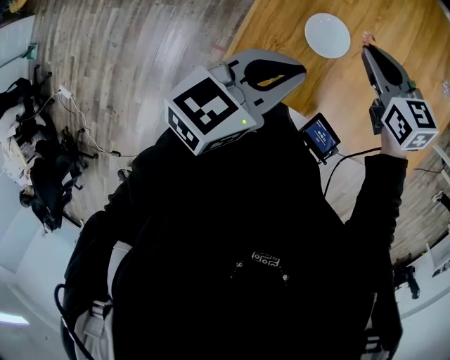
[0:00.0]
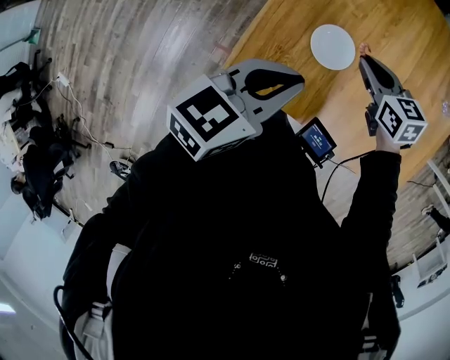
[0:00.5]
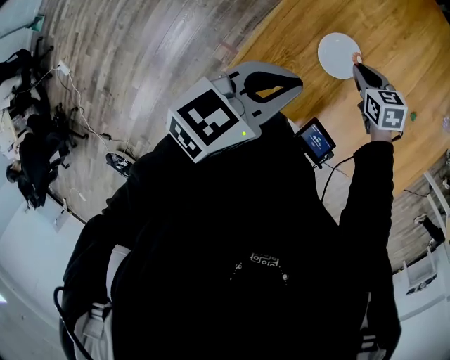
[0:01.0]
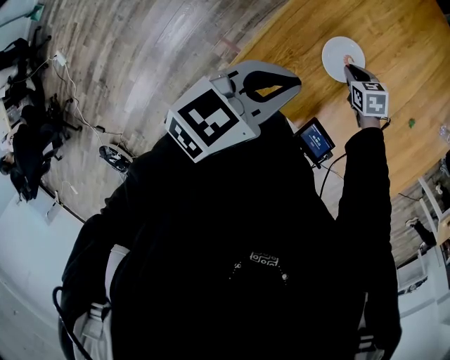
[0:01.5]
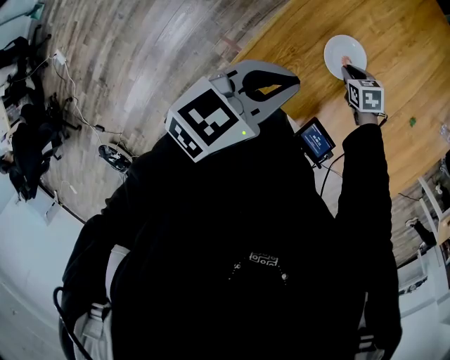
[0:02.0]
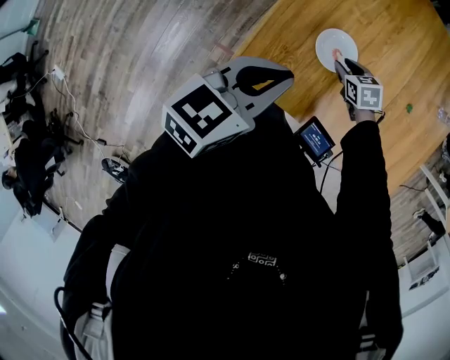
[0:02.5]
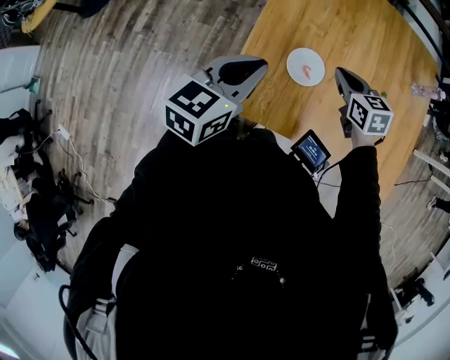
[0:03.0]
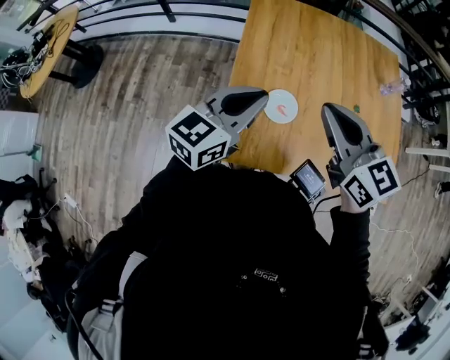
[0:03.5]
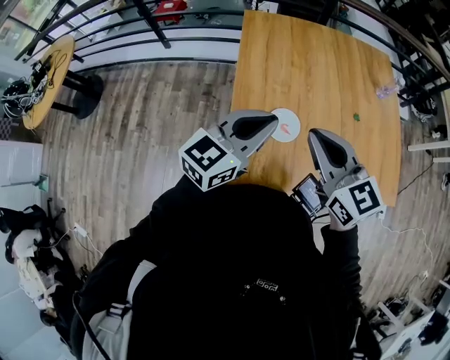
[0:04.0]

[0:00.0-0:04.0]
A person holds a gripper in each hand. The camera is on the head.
0:00.0 to 0:02.0: The right gripper goes roughly 25 cm downward, and tilts its fingers about 30 degrees downward.
0:02.0 to 0:04.0: The right gripper moves upward, about 40 cm, and points its fingers roughly 60 degrees further upward; the left gripper moves upward, about 10 cm, and rotates roughly 30 degrees.

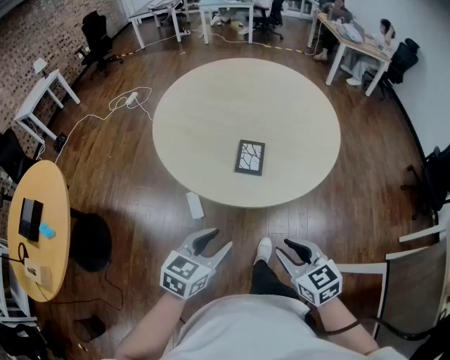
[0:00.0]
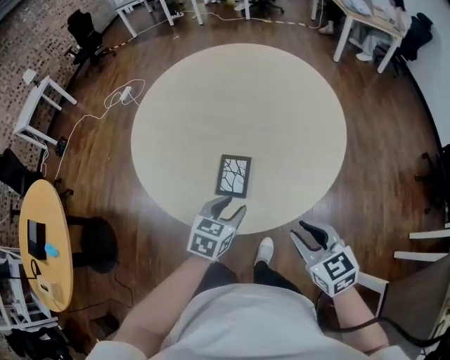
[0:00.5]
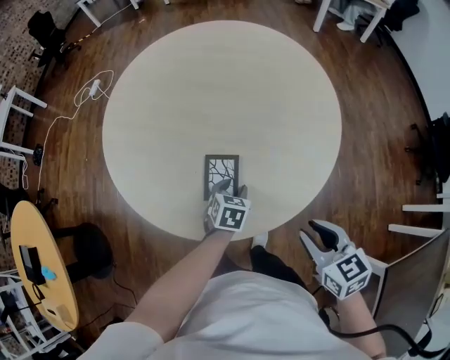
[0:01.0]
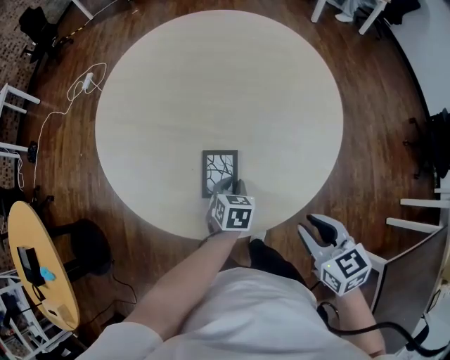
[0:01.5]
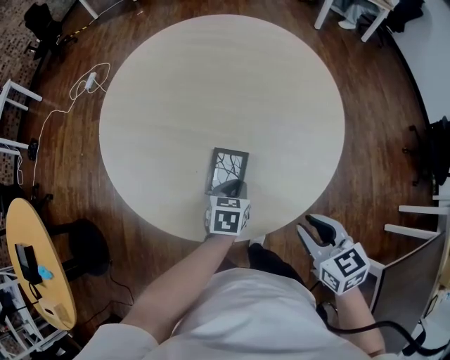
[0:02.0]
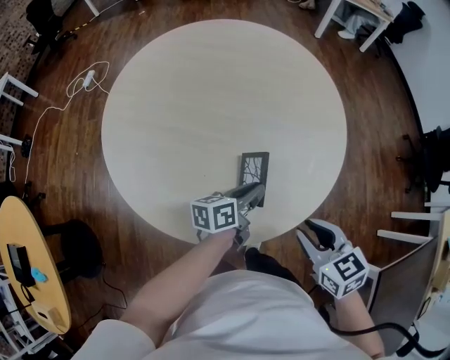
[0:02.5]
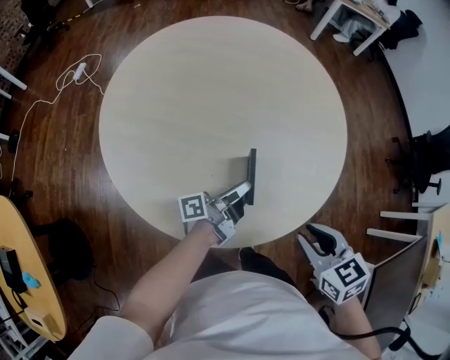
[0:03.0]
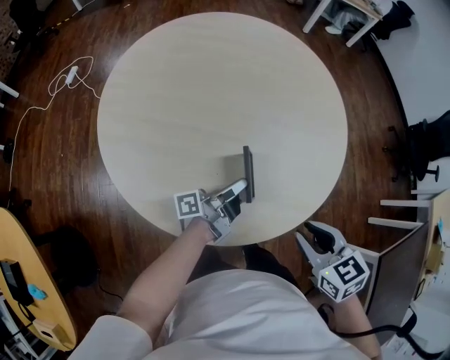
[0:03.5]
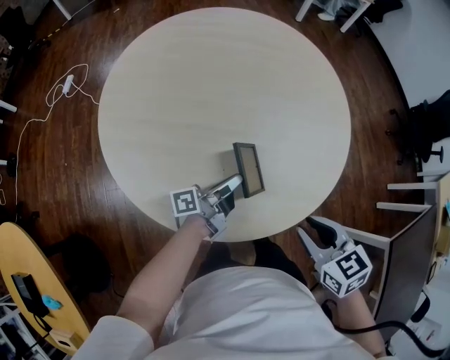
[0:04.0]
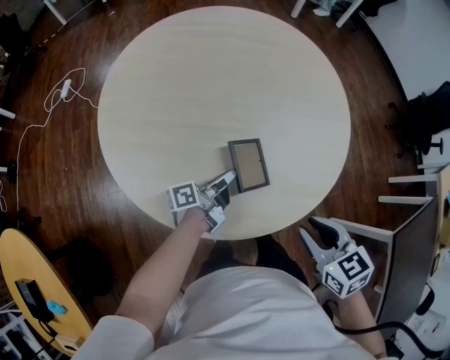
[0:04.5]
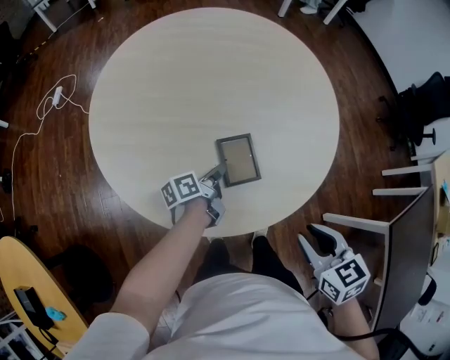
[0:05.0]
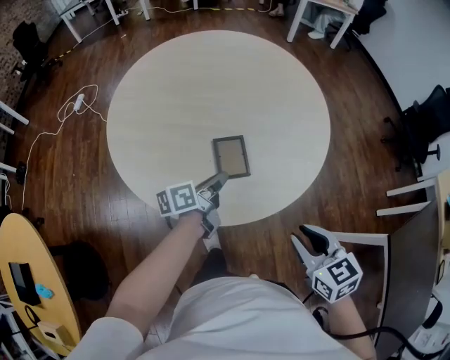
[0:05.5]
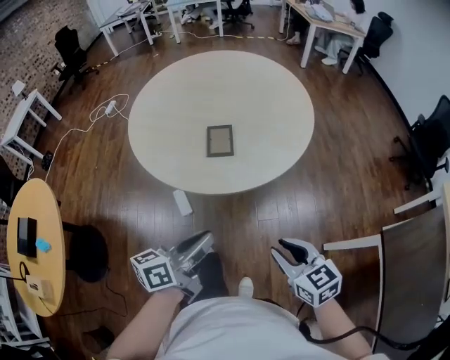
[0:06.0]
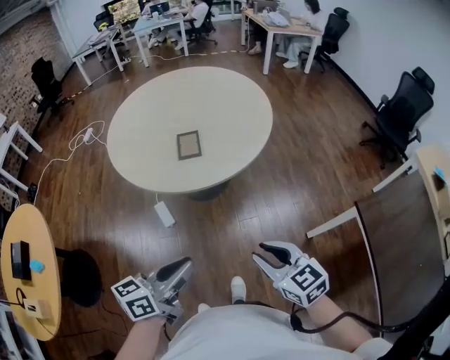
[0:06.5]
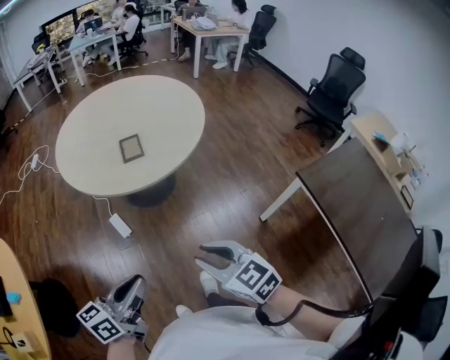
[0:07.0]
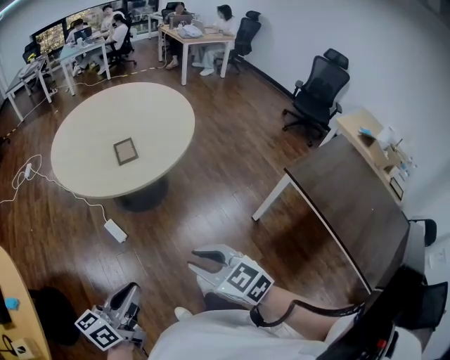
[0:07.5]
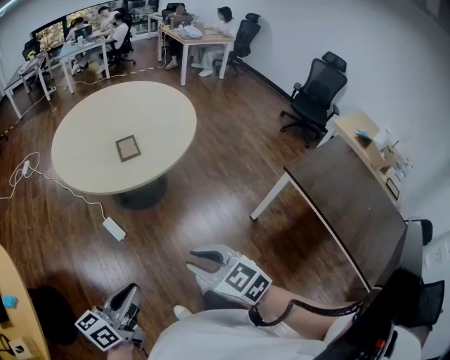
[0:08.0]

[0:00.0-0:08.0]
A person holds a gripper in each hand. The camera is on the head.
0:00.0 to 0:02.0: The right gripper travels forward and to the right by roughly 20 cm; the left gripper moves forward, downward and to the right, approximately 30 cm, rotates about 20 degrees, and closes up.
0:02.0 to 0:04.0: The left gripper heads to the left and upward, covering roughly 10 cm, and points its fingers approximately 60 degrees further upward, while the right gripper is displaced to the left by some 10 cm.
0:04.0 to 0:06.0: The right gripper moves backward and to the right, roughly 20 cm. The left gripper shifts approximately 30 cm backward and upward, and rotates approximately 40 degrees.
0:06.0 to 0:08.0: The left gripper heads backward, covering about 20 cm. Meanwhile the right gripper travels backward and to the left by some 20 cm.

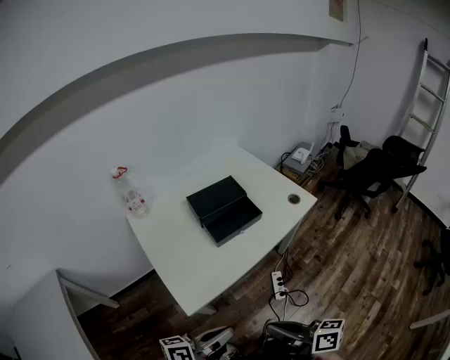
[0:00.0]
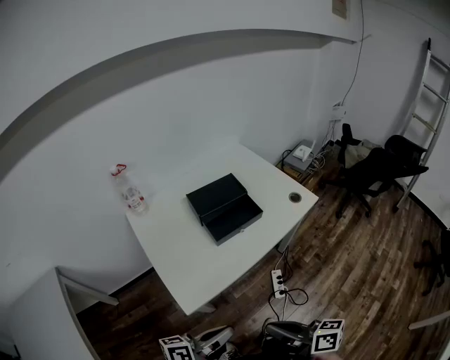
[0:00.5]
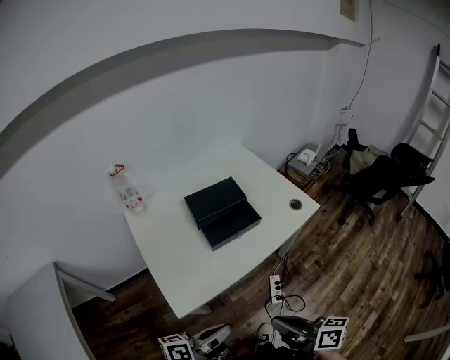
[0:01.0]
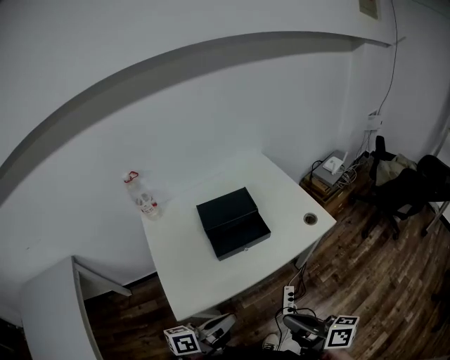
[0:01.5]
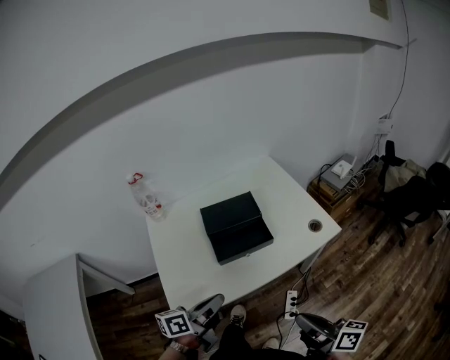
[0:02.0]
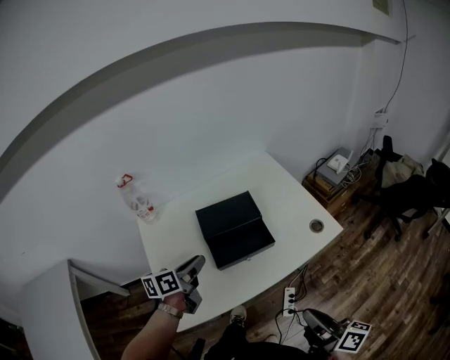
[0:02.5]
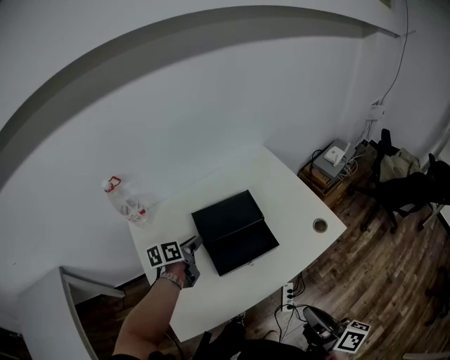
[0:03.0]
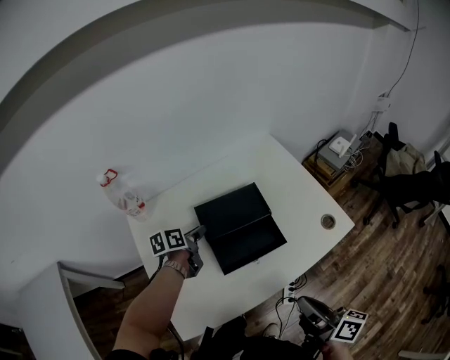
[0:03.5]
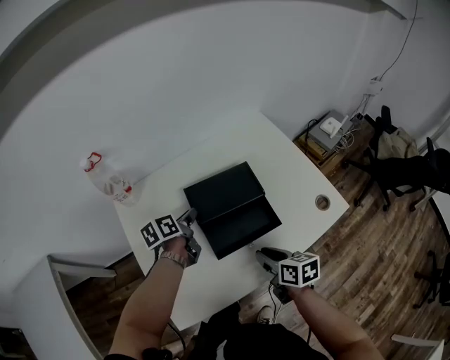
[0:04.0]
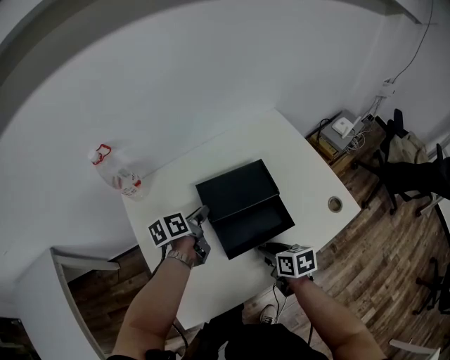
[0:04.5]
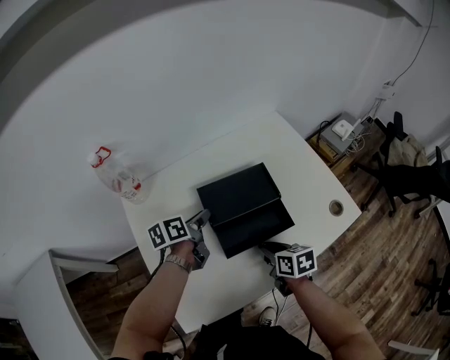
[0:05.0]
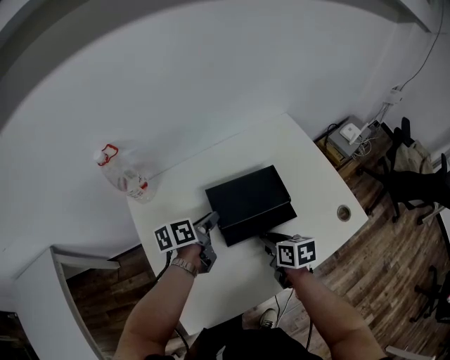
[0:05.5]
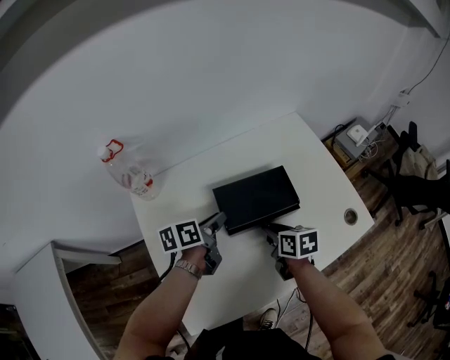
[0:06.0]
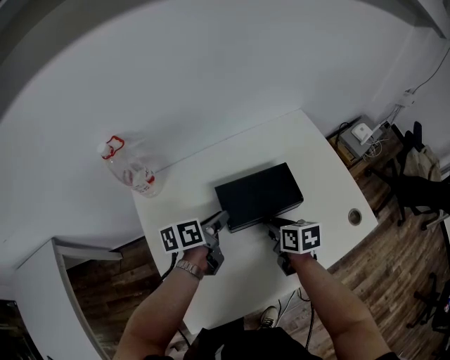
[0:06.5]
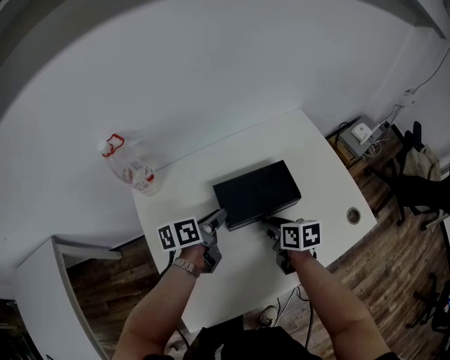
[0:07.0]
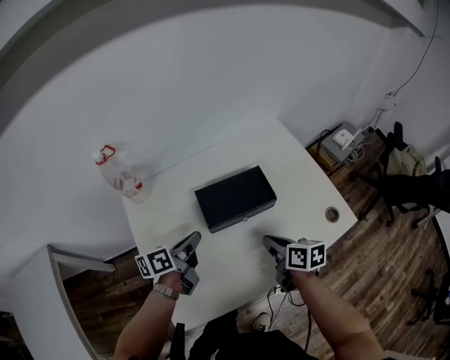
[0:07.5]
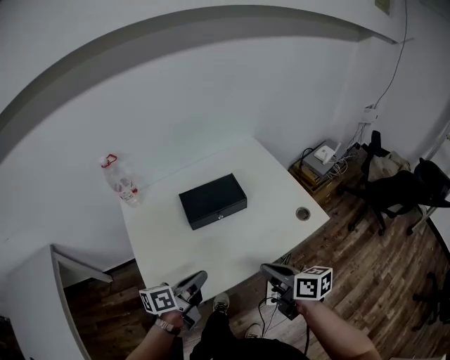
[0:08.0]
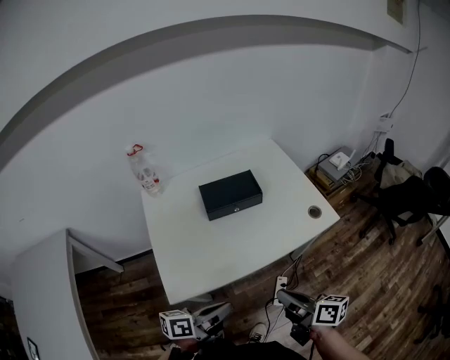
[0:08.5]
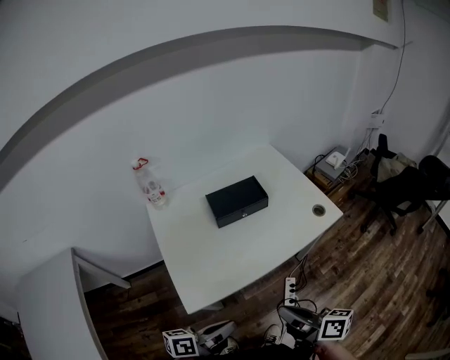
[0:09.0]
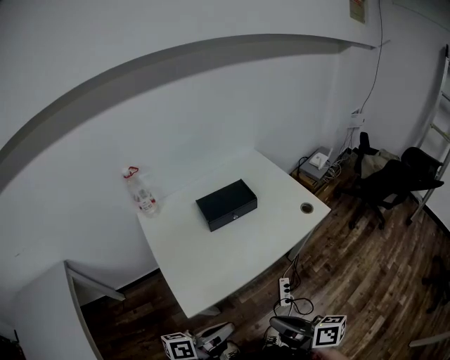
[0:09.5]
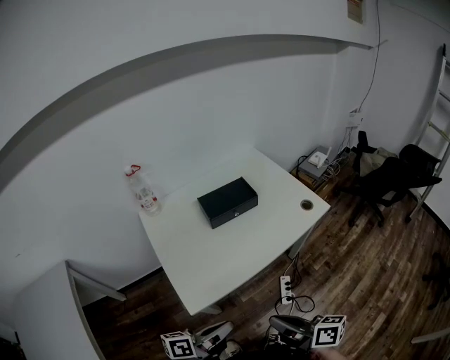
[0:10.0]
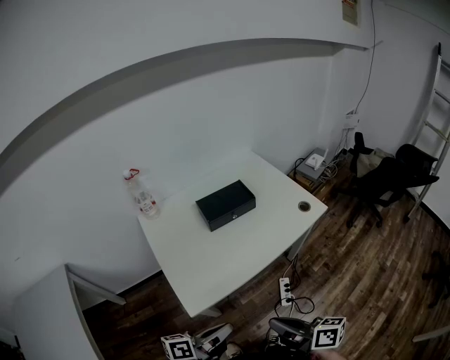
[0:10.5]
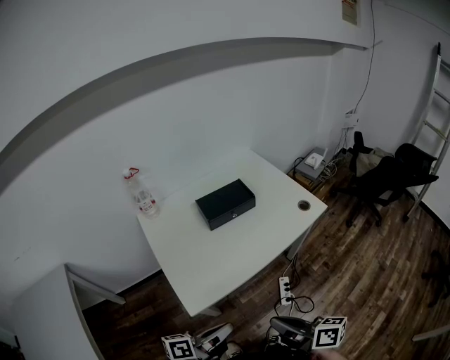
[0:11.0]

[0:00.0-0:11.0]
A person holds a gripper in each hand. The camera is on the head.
0:00.0 to 0:02.0: The right gripper shifts approximately 20 cm to the right and forward, while the left gripper shifts some 20 cm forward, and turns by about 20 degrees.
0:02.0 to 0:03.5: The right gripper heads forward, covering some 10 cm; the left gripper shifts approximately 30 cm forward, and swivels roughly 20 degrees.
0:03.5 to 0:05.5: The right gripper shifts about 30 cm forward, downward and to the left, and angles its fingers downward, by about 30 degrees.
0:05.5 to 0:07.5: The right gripper shifts by some 5 cm. The left gripper shifts some 5 cm backward, and closes.
0:07.5 to 0:09.0: The right gripper goes approximately 35 cm backward and upward, and rotates some 30 degrees, while the left gripper shifts approximately 35 cm backward.
0:09.0 to 0:11.0: The right gripper moves backward, roughly 5 cm.

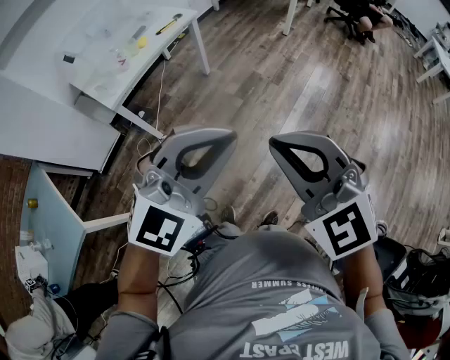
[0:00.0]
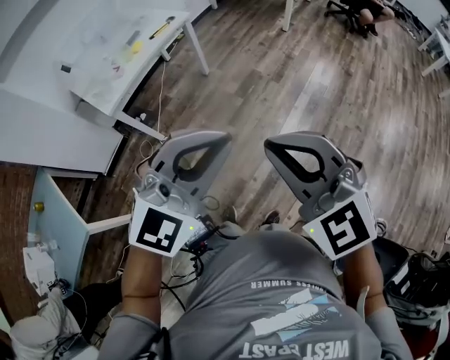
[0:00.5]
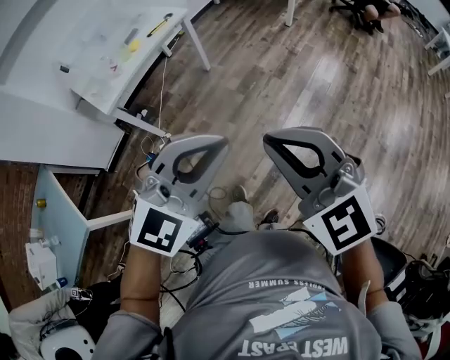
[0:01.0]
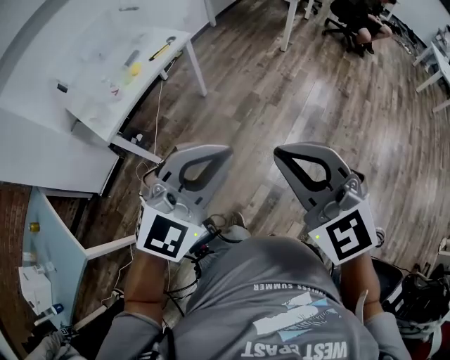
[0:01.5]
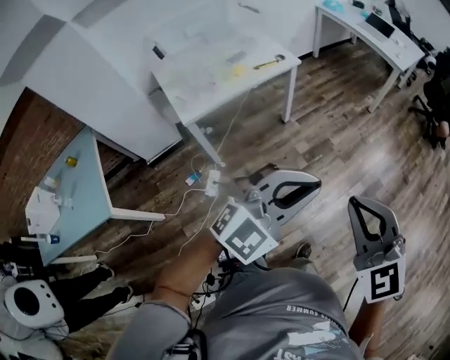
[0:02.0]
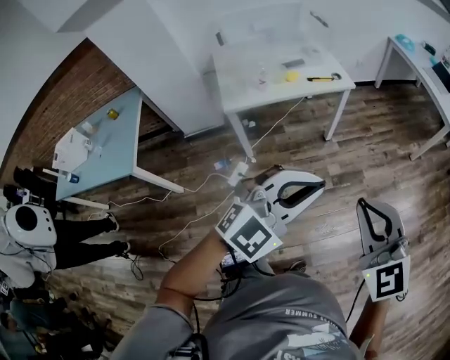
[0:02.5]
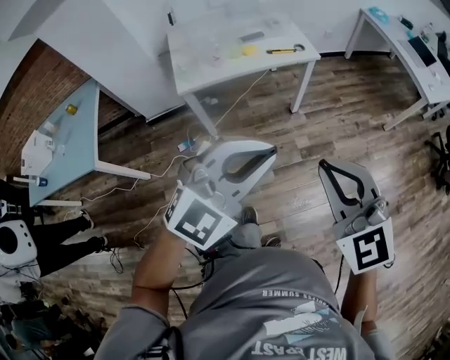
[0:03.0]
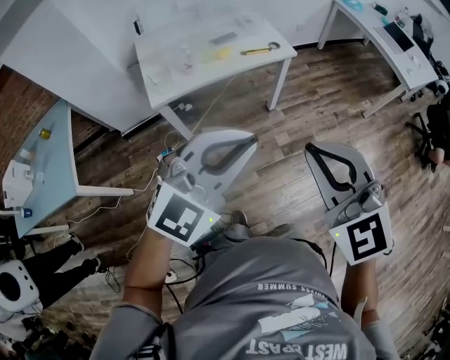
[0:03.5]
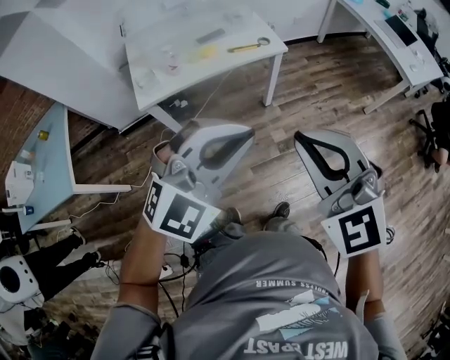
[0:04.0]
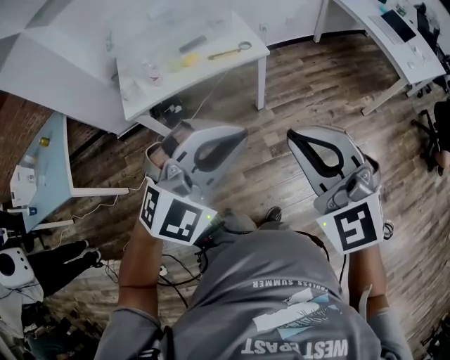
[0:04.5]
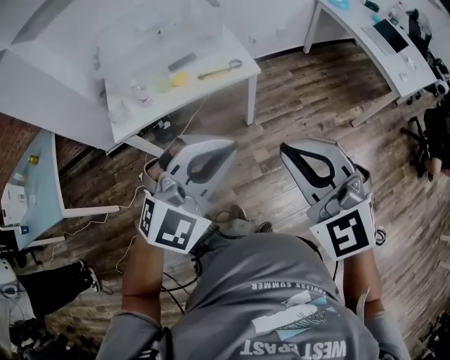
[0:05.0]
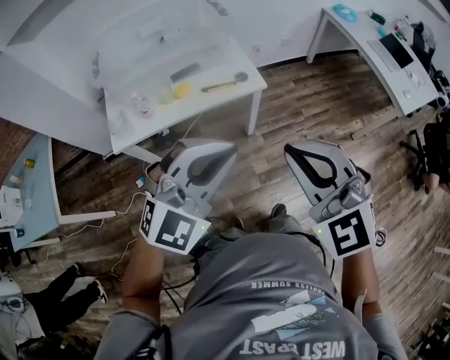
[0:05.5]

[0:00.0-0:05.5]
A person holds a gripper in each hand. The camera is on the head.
0:00.0 to 0:02.0: Both grippers move forward, roughly 15 cm.
0:02.0 to 0:03.5: Both grippers move forward, roughly 20 cm. The left gripper changes its angle by approximately 20 degrees.
0:03.5 to 0:05.5: Both grippers move forward and to the right, some 25 cm.
